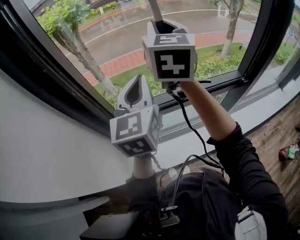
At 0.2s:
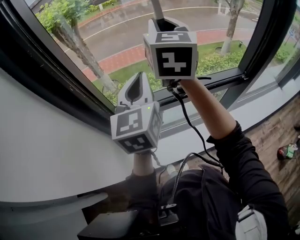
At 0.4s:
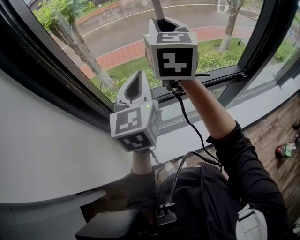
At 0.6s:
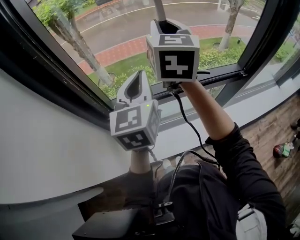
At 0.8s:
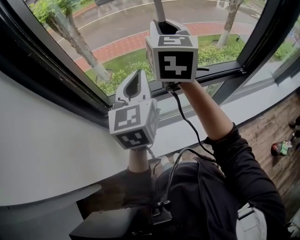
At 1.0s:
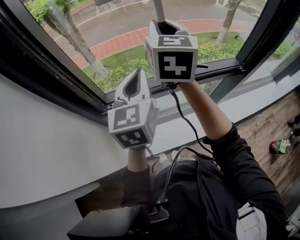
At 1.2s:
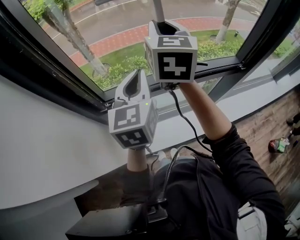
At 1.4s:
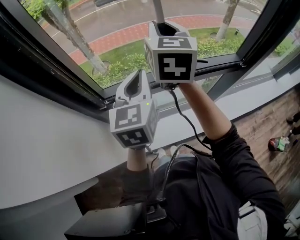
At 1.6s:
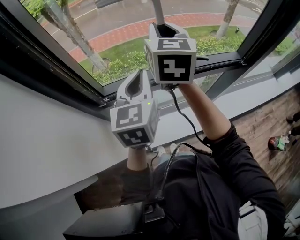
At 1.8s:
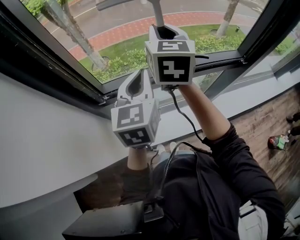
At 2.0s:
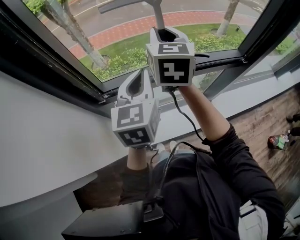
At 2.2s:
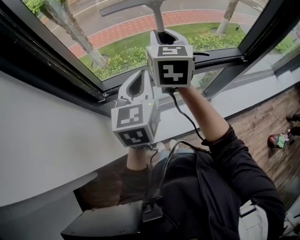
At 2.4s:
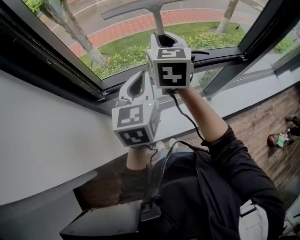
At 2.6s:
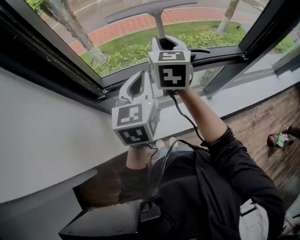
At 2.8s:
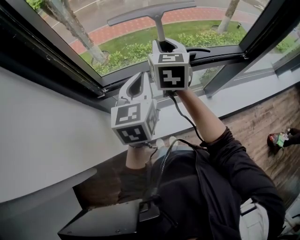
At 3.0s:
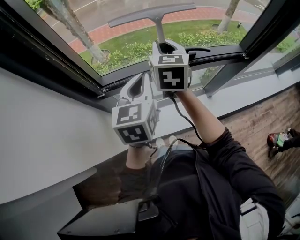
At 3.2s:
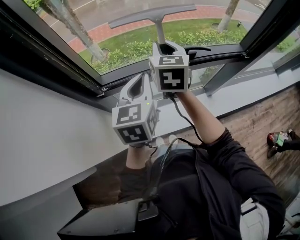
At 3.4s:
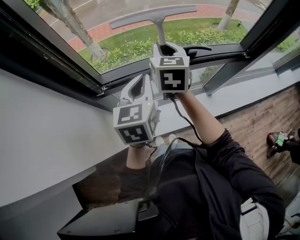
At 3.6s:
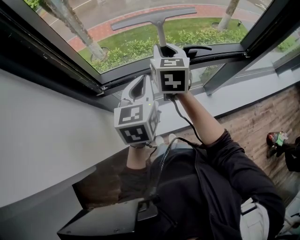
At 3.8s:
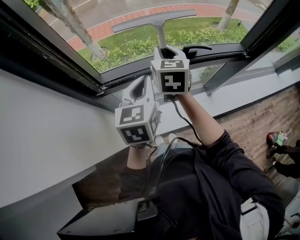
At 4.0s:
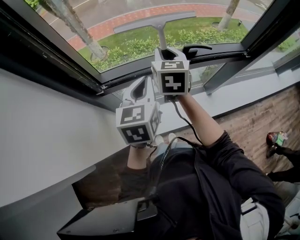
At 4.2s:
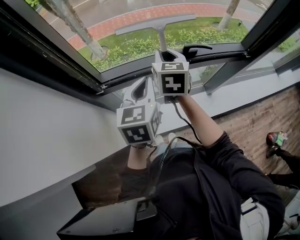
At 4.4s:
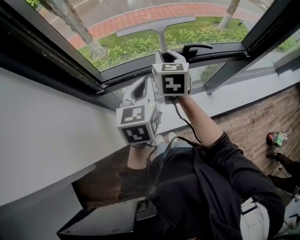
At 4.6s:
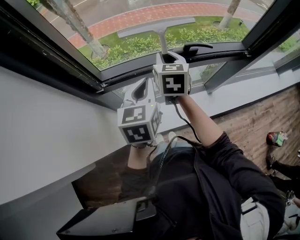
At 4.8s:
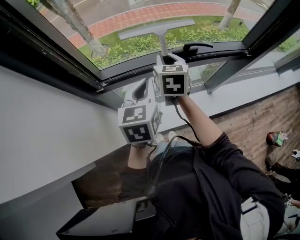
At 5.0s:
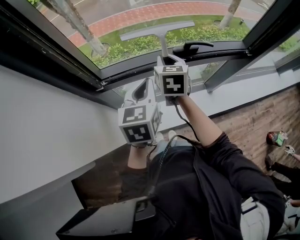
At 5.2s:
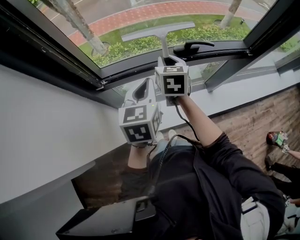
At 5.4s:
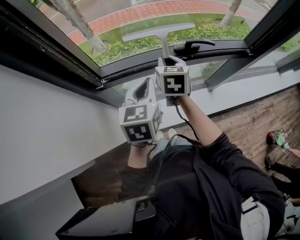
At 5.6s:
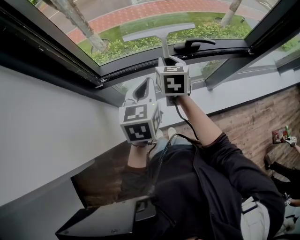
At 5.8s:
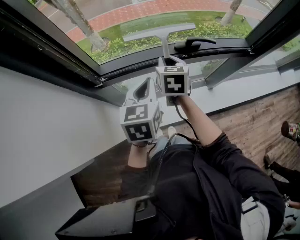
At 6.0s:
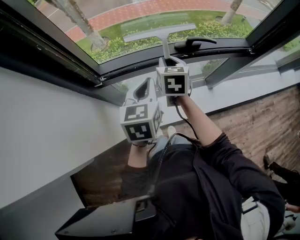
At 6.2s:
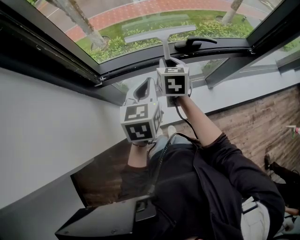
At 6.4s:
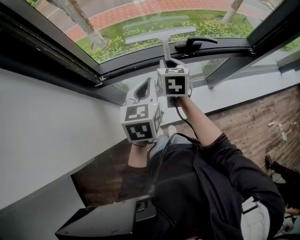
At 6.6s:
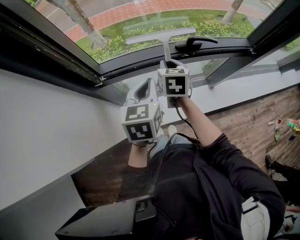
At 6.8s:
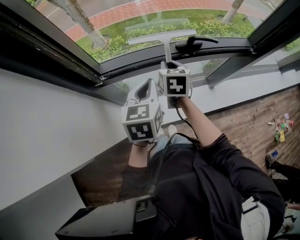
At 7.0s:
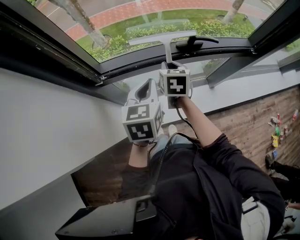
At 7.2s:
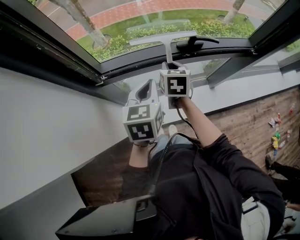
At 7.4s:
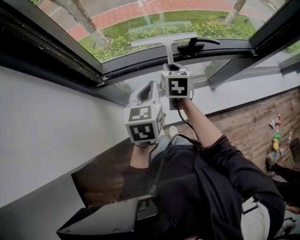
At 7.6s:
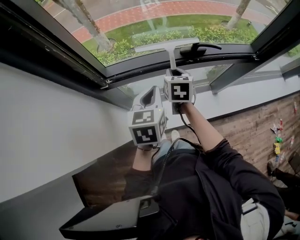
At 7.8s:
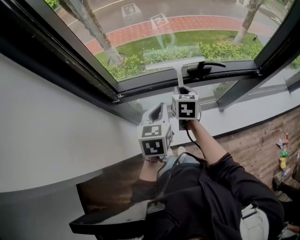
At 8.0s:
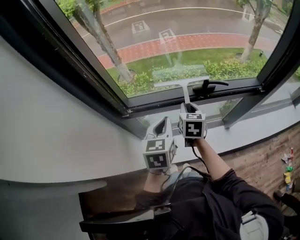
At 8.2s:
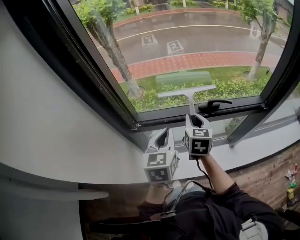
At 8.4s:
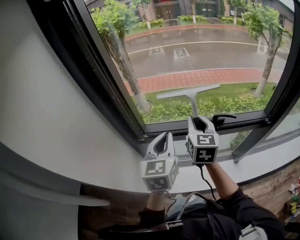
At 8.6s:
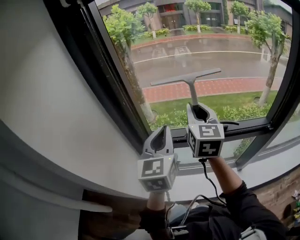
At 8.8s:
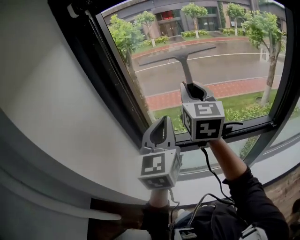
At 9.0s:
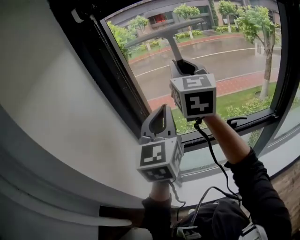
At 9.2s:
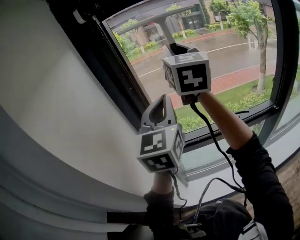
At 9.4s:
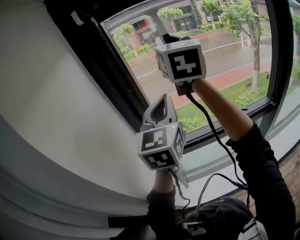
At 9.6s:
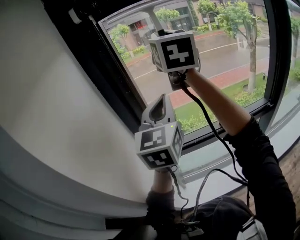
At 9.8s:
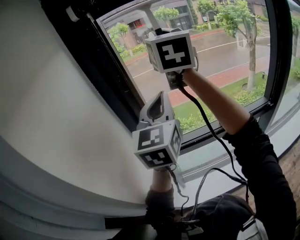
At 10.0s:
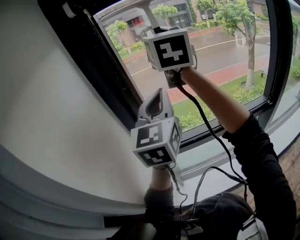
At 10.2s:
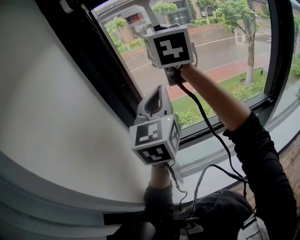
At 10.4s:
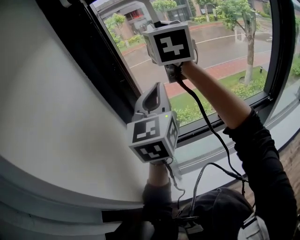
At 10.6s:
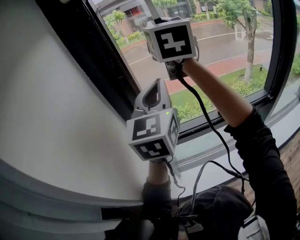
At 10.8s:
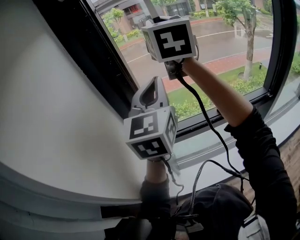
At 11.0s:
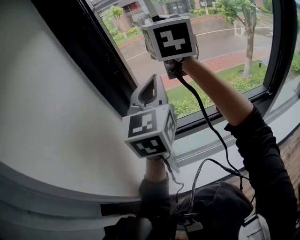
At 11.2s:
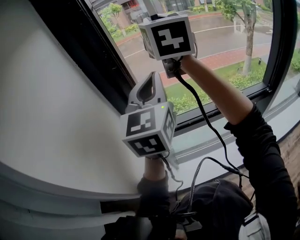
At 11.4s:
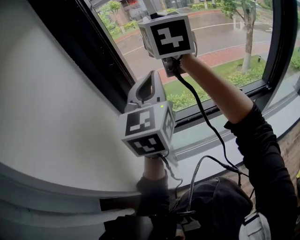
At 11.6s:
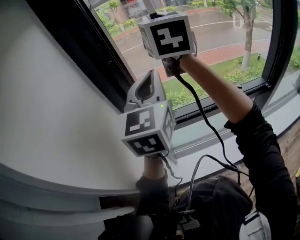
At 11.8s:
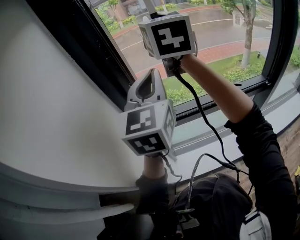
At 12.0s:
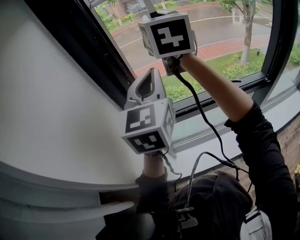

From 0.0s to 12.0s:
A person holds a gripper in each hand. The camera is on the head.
From 0.0s to 1.6s: The grippers both shift downward by about 10 cm.
From 1.6s to 3.0s: The left gripper moves downward, some 5 cm. The right gripper moves downward, approximately 10 cm.
From 3.0s to 4.4s: The right gripper travels downward by about 5 cm.
From 4.4s to 6.0s: The right gripper shifts approximately 5 cm downward.
From 6.0s to 7.6s: There are only small adjustments of the grippers.
From 7.6s to 9.0s: Both grippers travel together upward, about 40 cm. The right gripper points its fingers some 50 degrees further upward. Meanwhile the left gripper tips its fingers upward by about 40 degrees.
From 9.0s to 10.4s: The left gripper heads forward, covering about 5 cm; the right gripper is displaced upward and forward by some 10 cm.
From 10.4s to 12.0s: The right gripper goes about 5 cm downward.

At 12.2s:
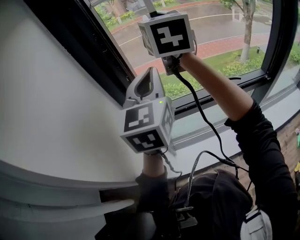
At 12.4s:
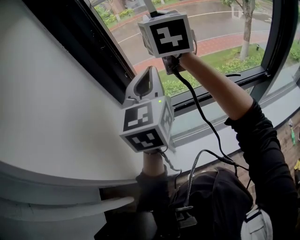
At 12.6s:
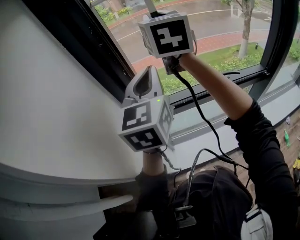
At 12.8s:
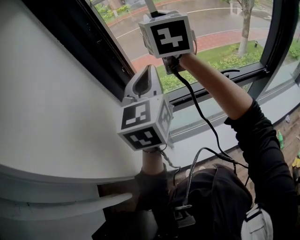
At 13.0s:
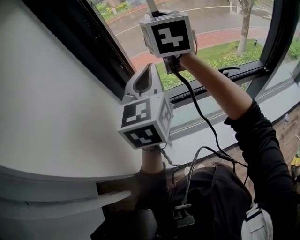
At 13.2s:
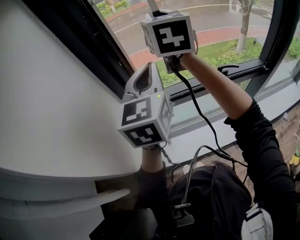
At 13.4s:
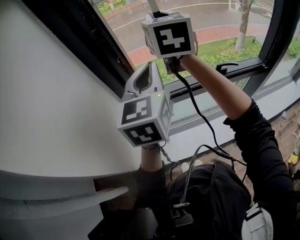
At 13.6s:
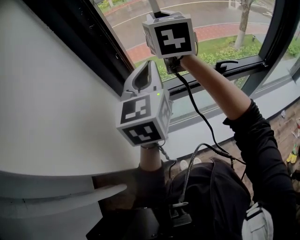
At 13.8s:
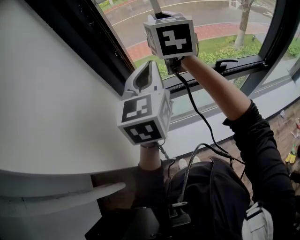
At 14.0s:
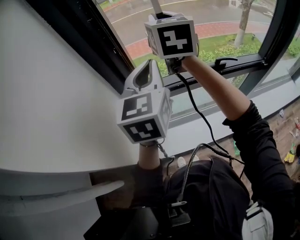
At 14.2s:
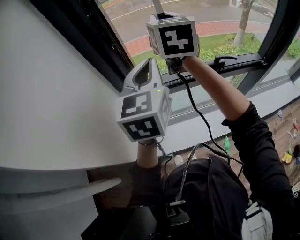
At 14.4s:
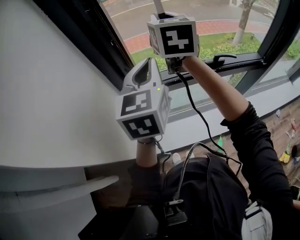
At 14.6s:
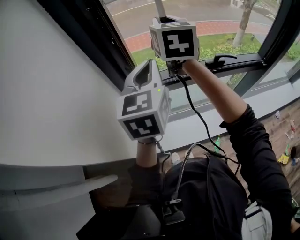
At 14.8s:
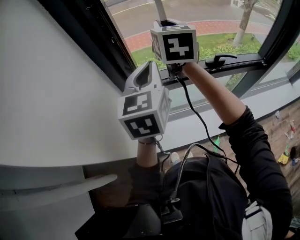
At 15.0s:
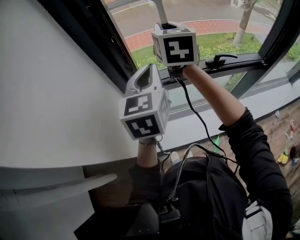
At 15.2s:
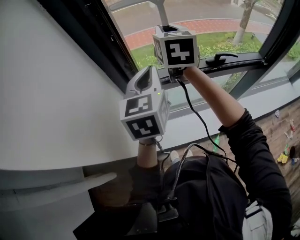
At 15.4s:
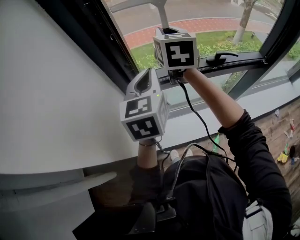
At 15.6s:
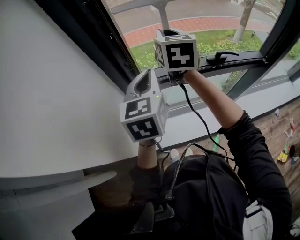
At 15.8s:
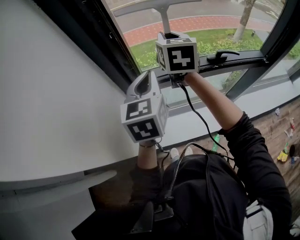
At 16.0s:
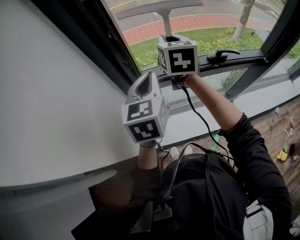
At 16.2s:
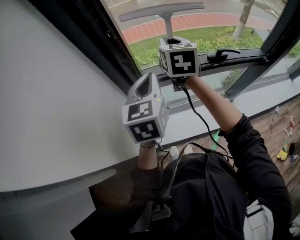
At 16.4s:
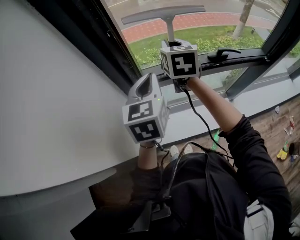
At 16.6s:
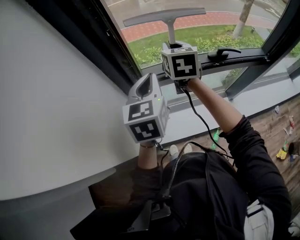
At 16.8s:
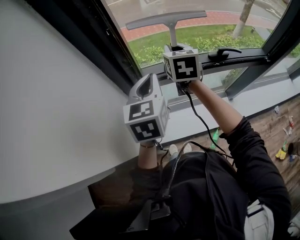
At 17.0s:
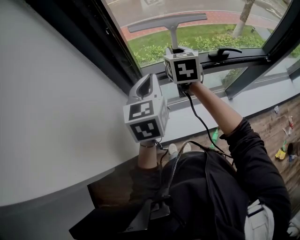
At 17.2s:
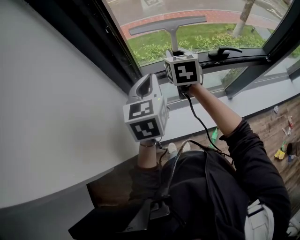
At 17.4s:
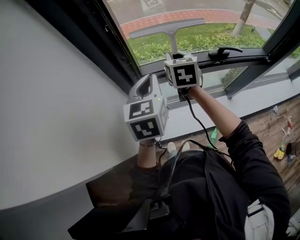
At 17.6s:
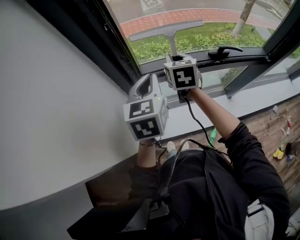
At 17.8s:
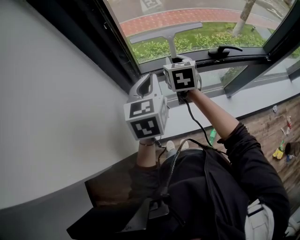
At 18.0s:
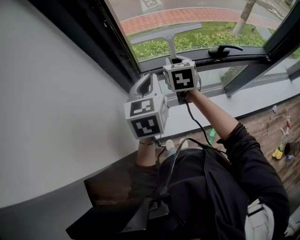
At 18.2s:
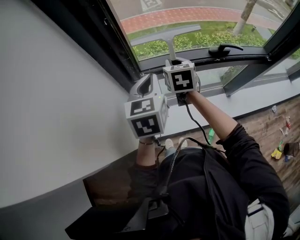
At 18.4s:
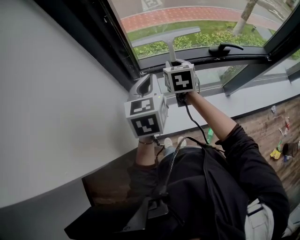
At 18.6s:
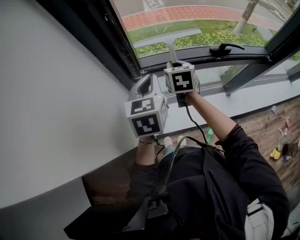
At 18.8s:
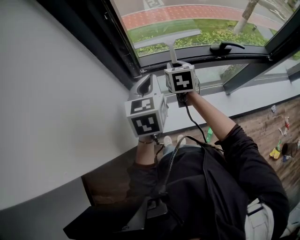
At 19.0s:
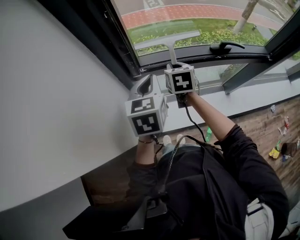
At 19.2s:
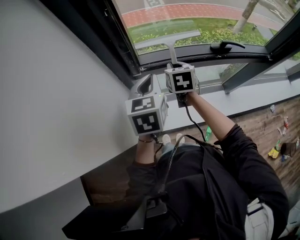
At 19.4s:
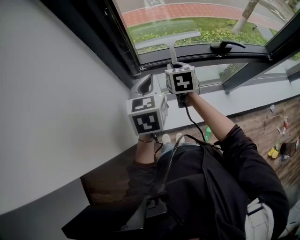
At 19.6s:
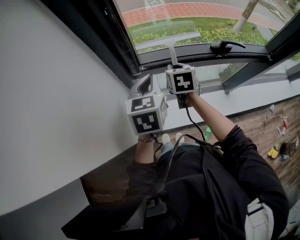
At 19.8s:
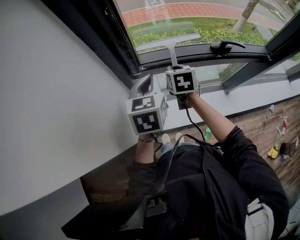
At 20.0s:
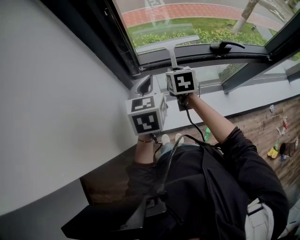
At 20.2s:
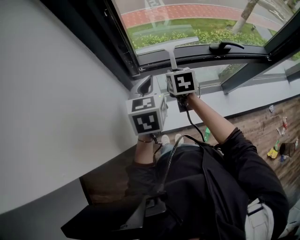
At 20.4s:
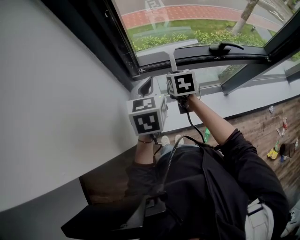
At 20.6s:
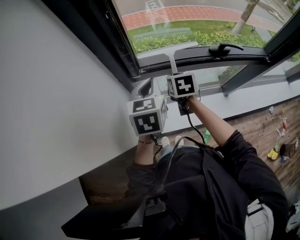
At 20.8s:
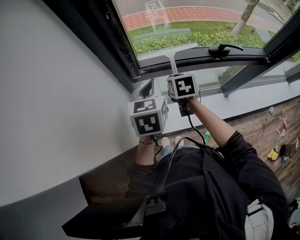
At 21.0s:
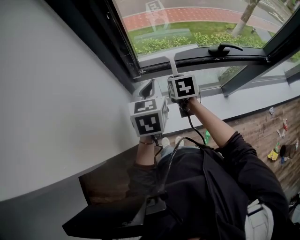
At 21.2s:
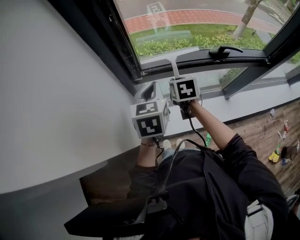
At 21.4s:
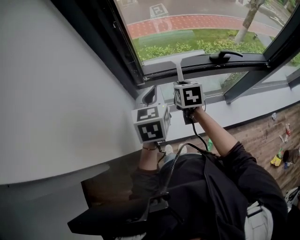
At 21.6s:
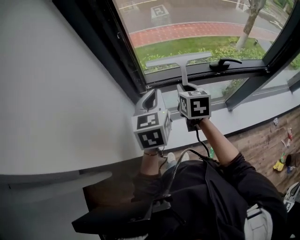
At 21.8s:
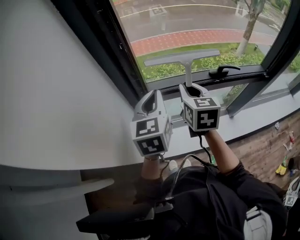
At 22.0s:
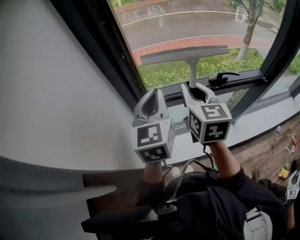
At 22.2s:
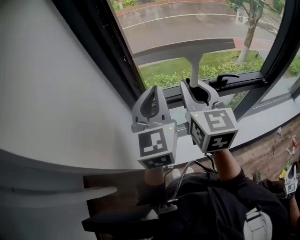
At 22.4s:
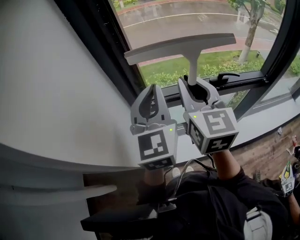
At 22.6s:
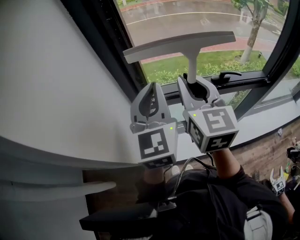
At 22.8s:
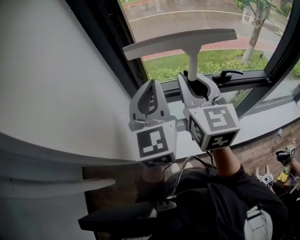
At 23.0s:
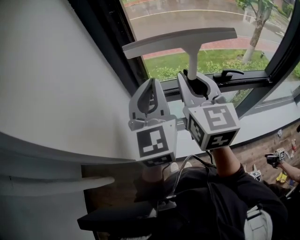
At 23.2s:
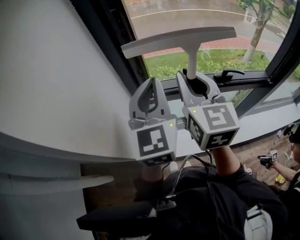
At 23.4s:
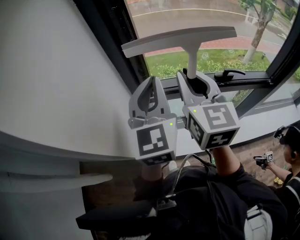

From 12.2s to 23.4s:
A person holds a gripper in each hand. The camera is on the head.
From 12.2s to 13.8s: The grippers both shift downward by roughly 10 cm.
From 13.8s to 15.4s: The grippers both shift downward by about 10 cm.
From 15.4s to 17.0s: The right gripper heads downward, covering approximately 15 cm; the left gripper shifts some 5 cm downward.
From 17.0s to 18.6s: The right gripper heads downward, covering about 10 cm.
From 18.6s to 20.2s: The grippers make only small movements.
From 20.2s to 21.8s: The right gripper goes some 15 cm upward, and swivels about 20 degrees. The left gripper shifts about 10 cm upward.
From 21.8s to 23.4s: The grippers both shift upward by about 10 cm. The right gripper swivels roughly 20 degrees.

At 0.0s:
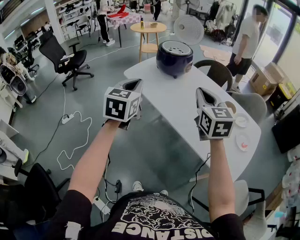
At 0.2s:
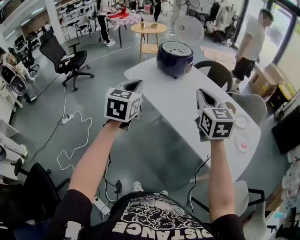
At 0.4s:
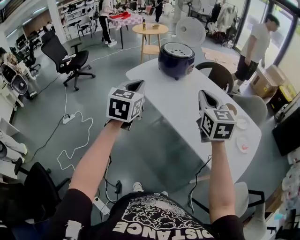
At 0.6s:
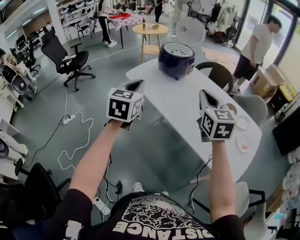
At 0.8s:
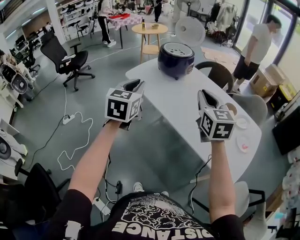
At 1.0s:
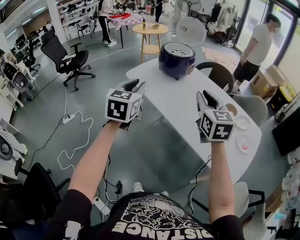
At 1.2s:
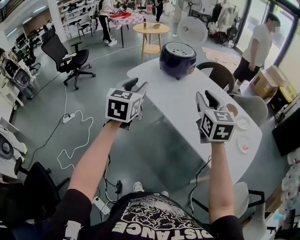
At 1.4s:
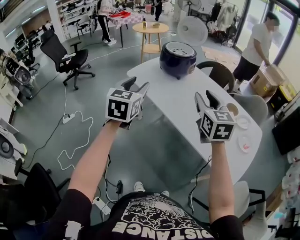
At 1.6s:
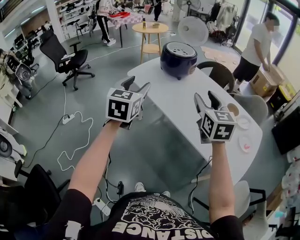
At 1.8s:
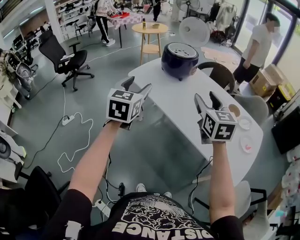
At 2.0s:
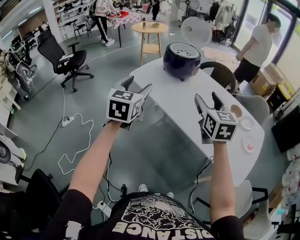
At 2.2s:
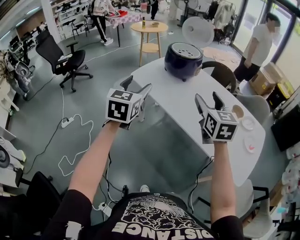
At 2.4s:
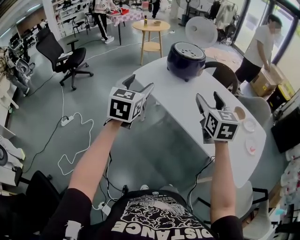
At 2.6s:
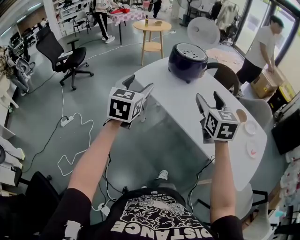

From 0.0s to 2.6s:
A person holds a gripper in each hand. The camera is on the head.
From 0.0s to 1.2s: The left gripper opens.
From 1.2s to 2.6s: Both grippers move to the left and forward, some 15 cm. The right gripper opens; the left gripper opens.
